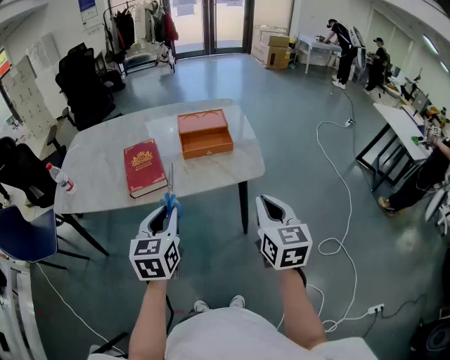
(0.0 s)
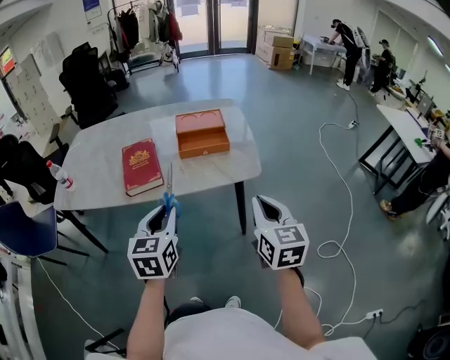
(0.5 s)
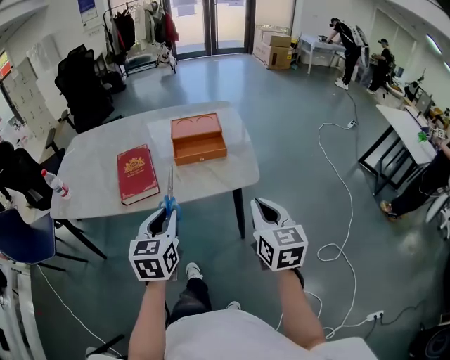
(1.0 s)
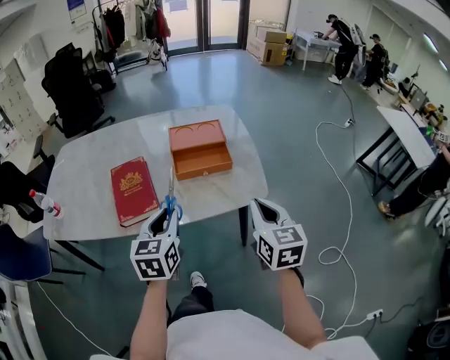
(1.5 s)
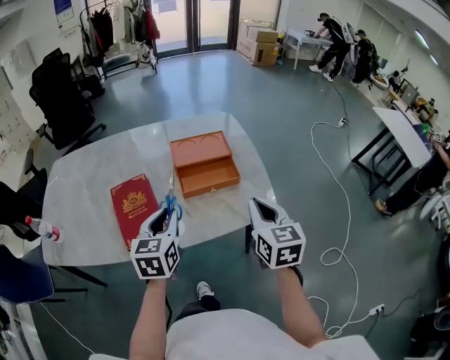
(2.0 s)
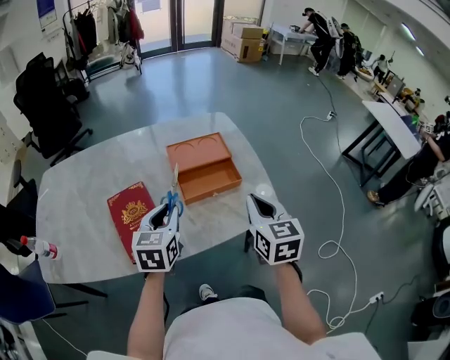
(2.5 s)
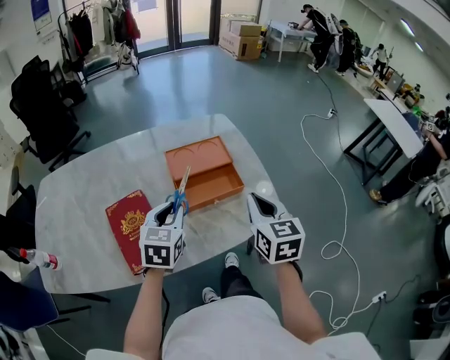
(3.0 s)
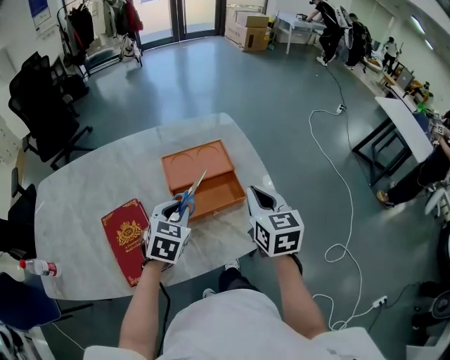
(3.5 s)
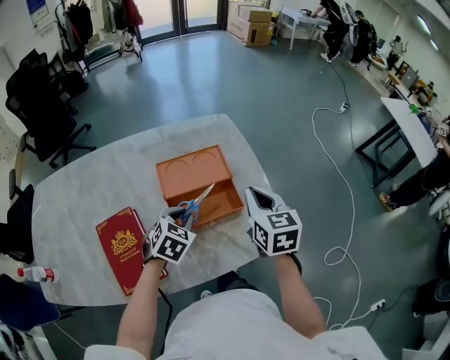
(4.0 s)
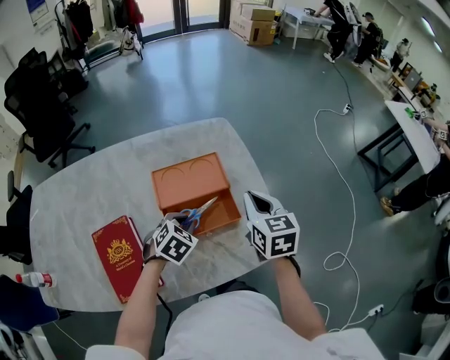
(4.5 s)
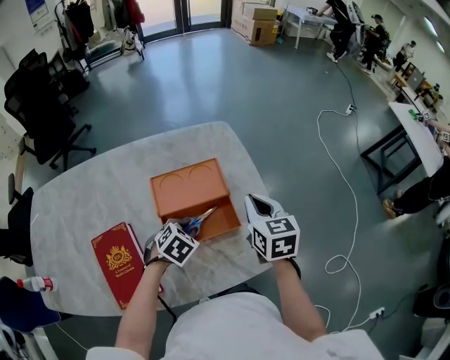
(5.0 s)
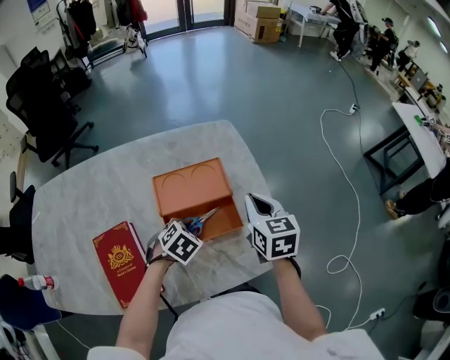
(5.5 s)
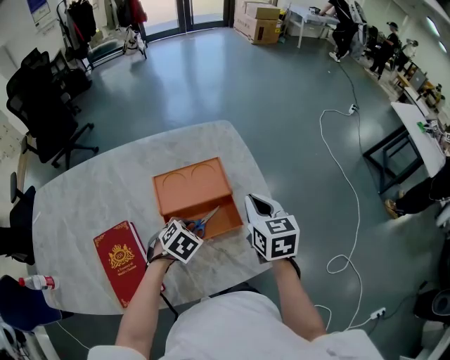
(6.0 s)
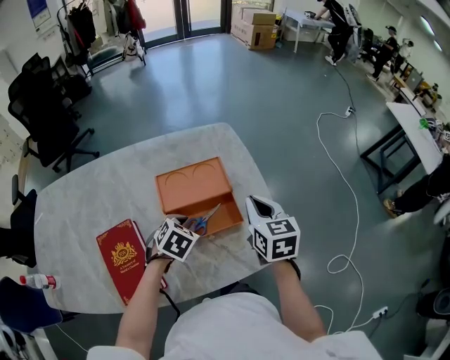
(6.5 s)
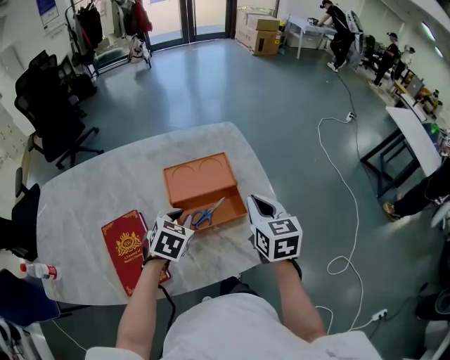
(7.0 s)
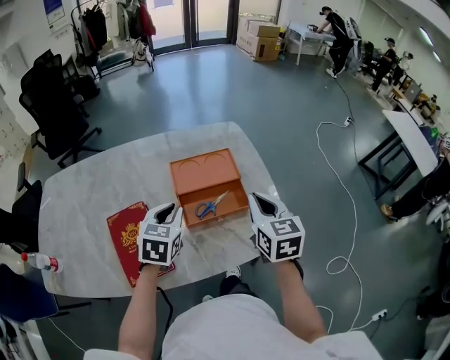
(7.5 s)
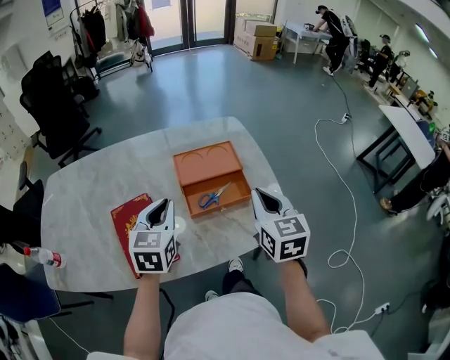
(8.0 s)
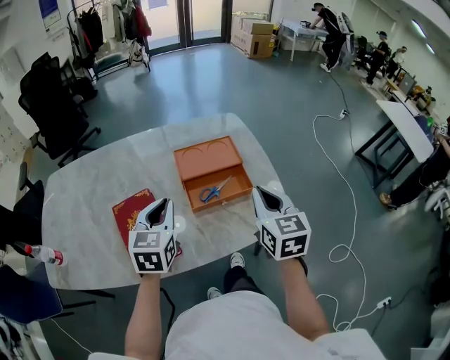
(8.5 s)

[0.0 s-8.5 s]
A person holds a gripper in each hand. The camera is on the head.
0.0 to 2.0 s: Both grippers move forward, approximately 20 cm.
2.0 to 4.0 s: The right gripper goes roughly 20 cm forward. The left gripper moves forward and downward, approximately 20 cm, and rotates approximately 40 degrees.
6.5 to 8.5 s: The right gripper moves backward and upward, roughly 15 cm, while the left gripper moves upward, backward and to the left, some 20 cm, and angles its fingers upward, by some 40 degrees.

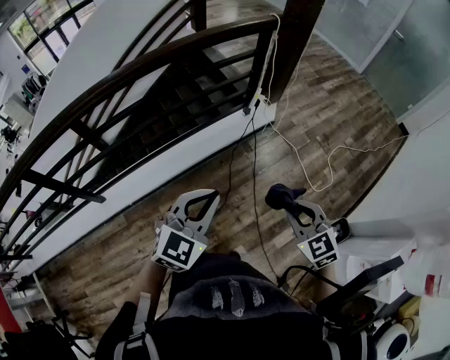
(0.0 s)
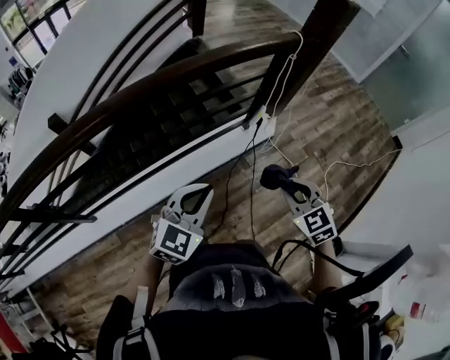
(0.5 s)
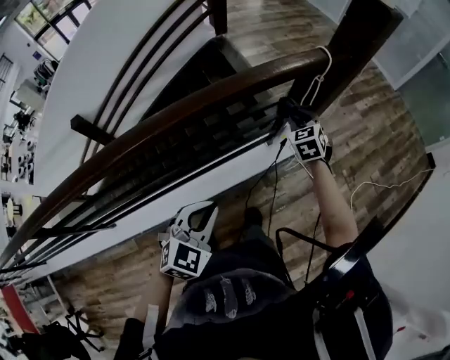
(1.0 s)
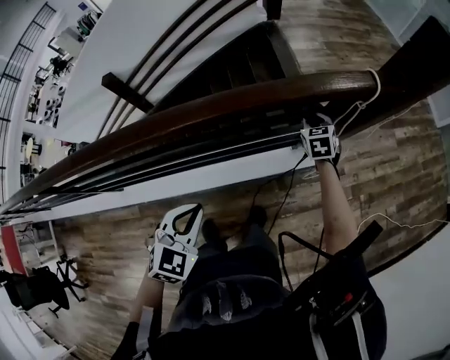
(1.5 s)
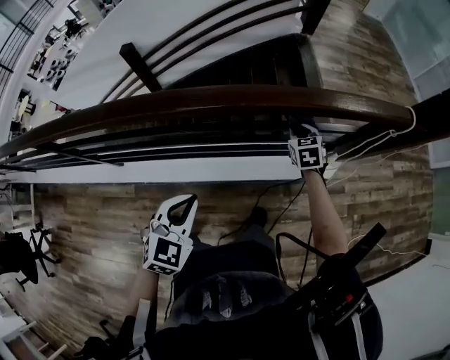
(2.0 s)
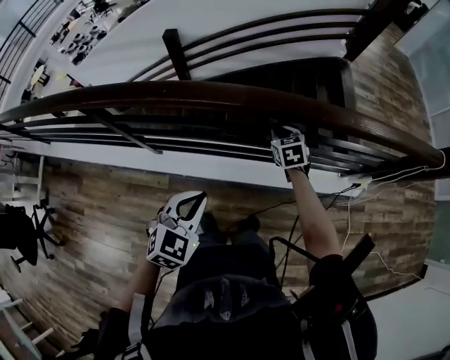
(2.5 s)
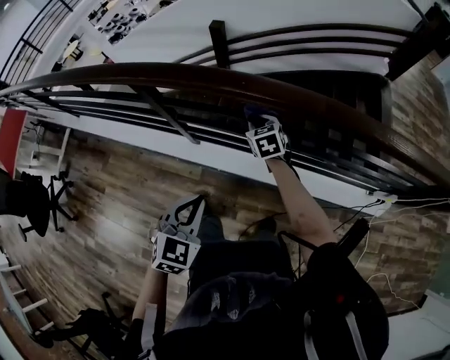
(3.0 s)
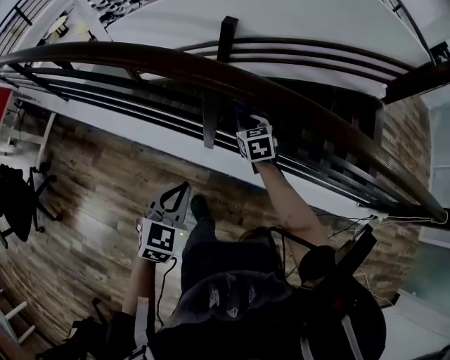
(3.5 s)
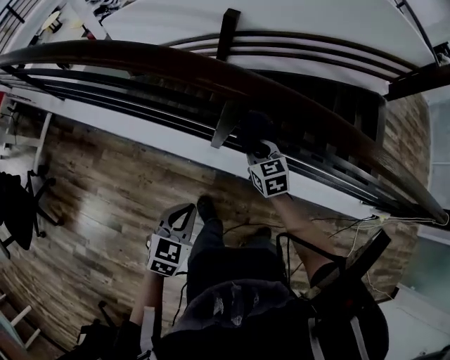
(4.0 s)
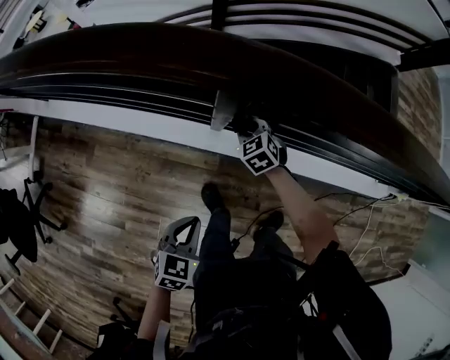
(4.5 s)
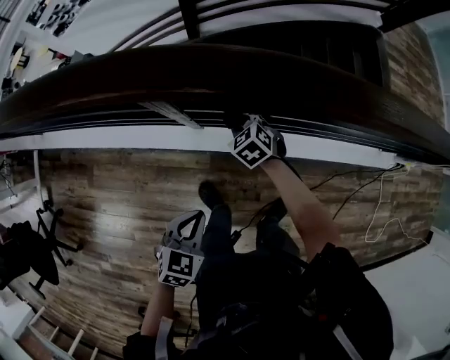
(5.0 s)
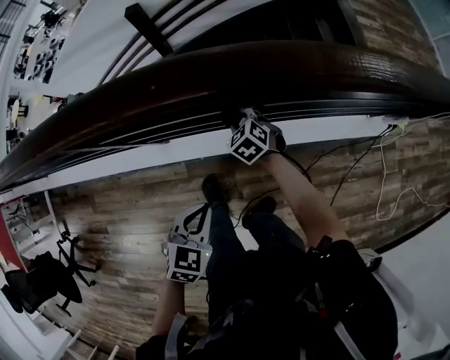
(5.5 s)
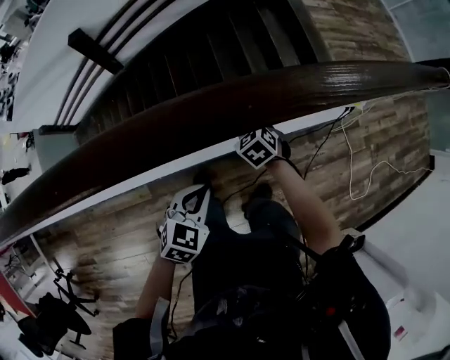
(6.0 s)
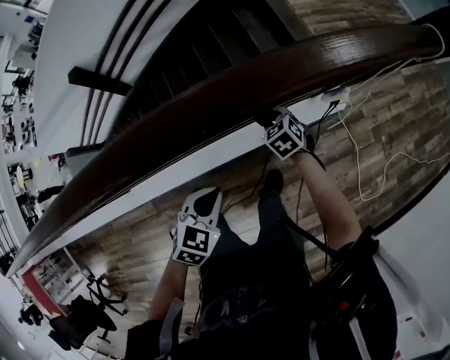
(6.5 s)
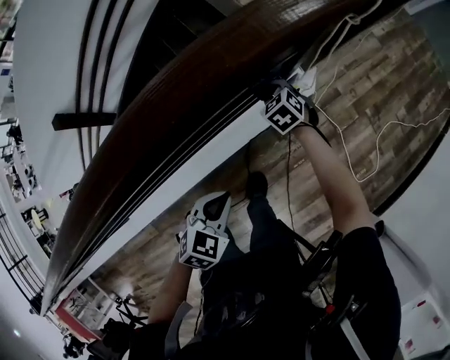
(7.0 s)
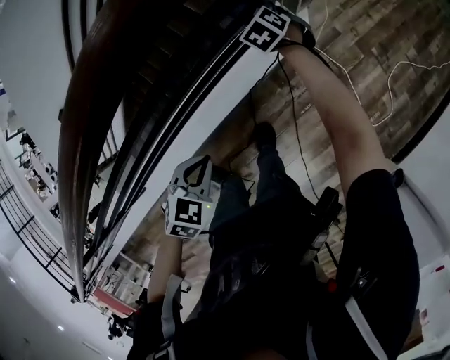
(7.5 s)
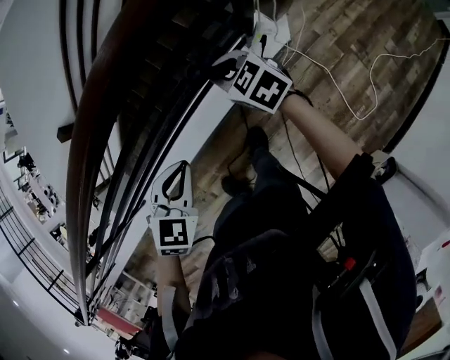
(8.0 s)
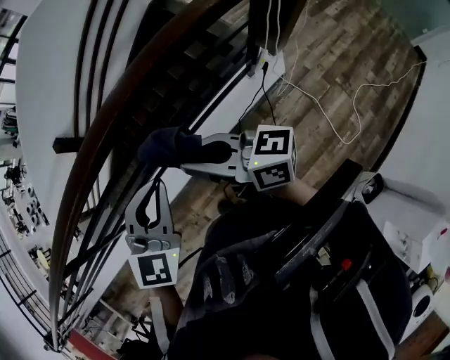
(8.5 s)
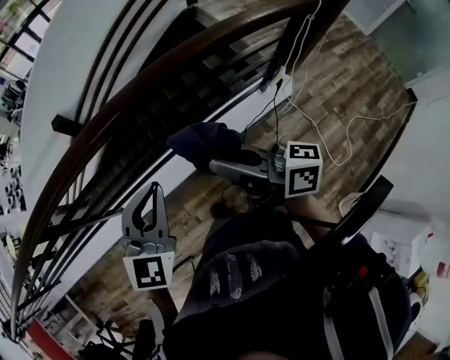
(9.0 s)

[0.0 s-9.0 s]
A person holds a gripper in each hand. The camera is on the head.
0.0 to 2.0 s: The left gripper shifts by about 35 cm, and swivels approximately 40 degrees. The right gripper moves roughly 70 cm.
2.0 to 4.5 s: Both grippers are carried about 90 cm. The right gripper swivels roughly 40 degrees, while the left gripper turns by roughly 30 degrees.
4.5 to 7.0 s: The two grippers travel together, some 1 m. The right gripper swivels approximately 50 degrees; the left gripper swivels about 60 degrees.
7.0 to 9.0 s: The right gripper moves roughly 70 cm, and angles its fingers upward, by about 70 degrees; the left gripper shifts by approximately 50 cm, and tips its fingers upward by roughly 40 degrees.

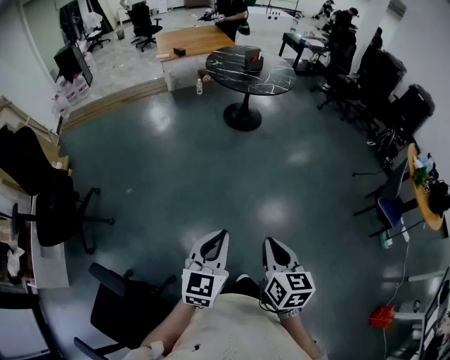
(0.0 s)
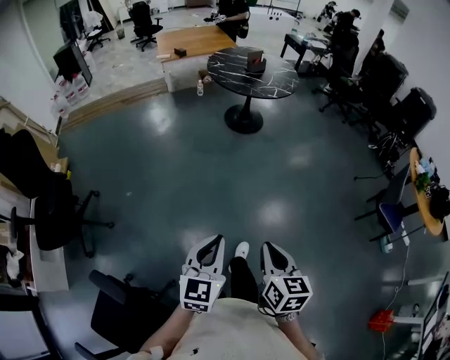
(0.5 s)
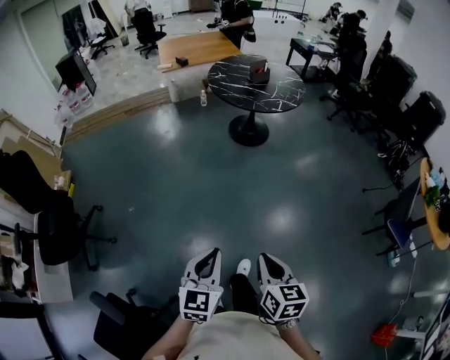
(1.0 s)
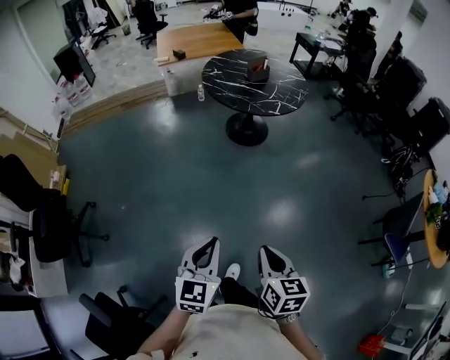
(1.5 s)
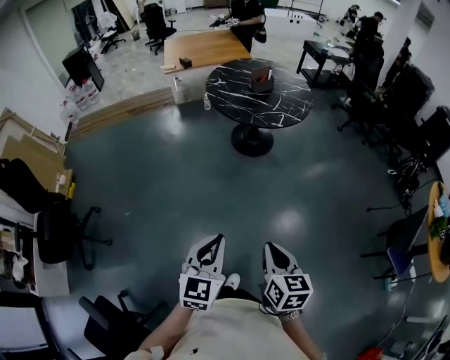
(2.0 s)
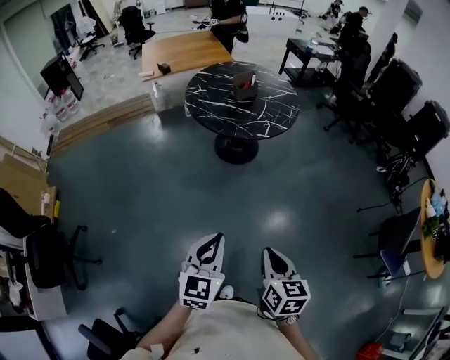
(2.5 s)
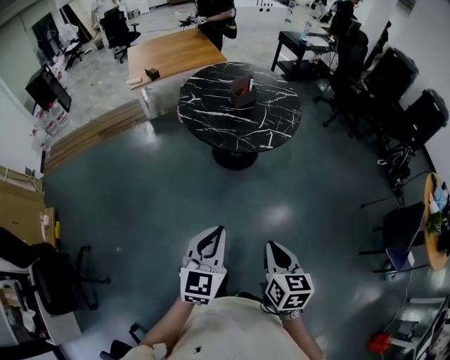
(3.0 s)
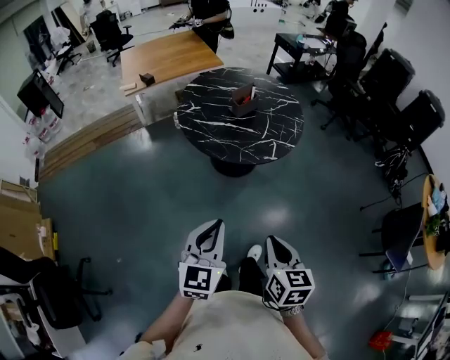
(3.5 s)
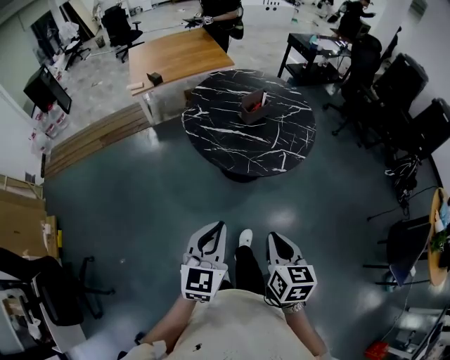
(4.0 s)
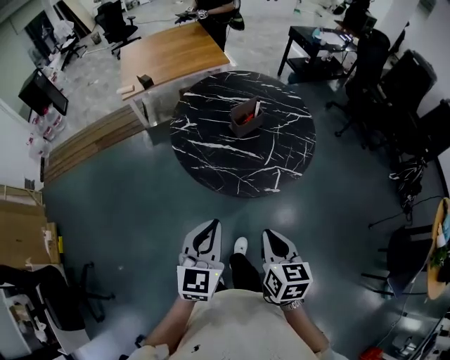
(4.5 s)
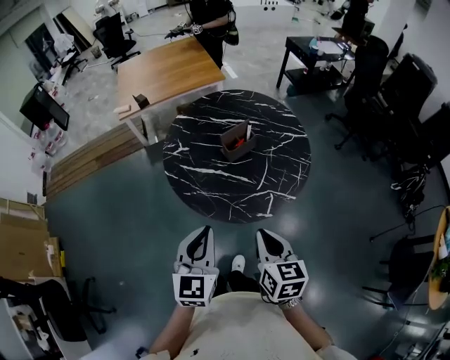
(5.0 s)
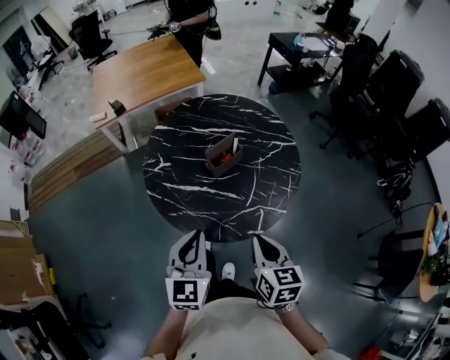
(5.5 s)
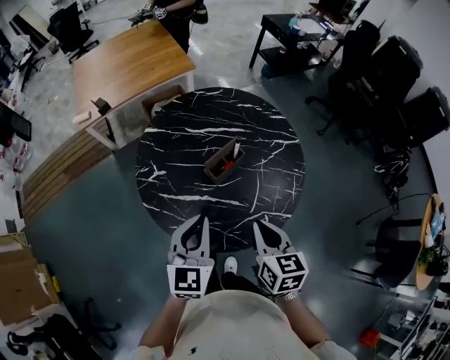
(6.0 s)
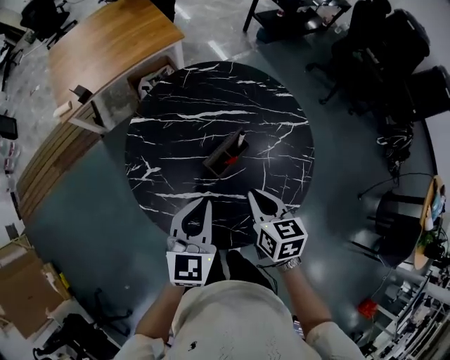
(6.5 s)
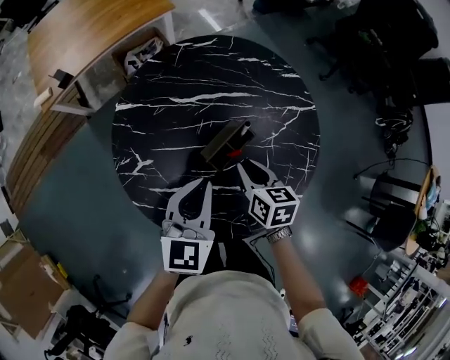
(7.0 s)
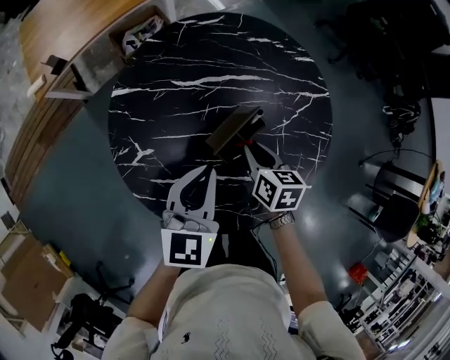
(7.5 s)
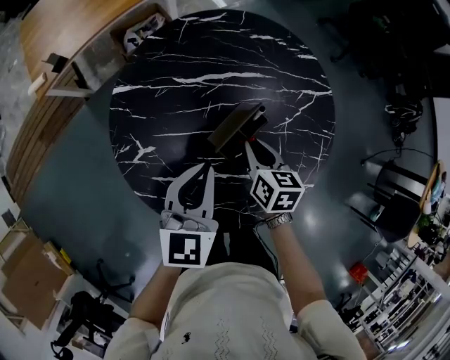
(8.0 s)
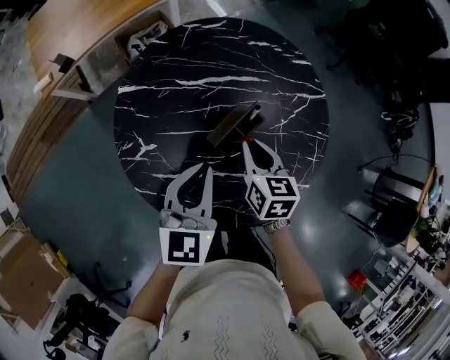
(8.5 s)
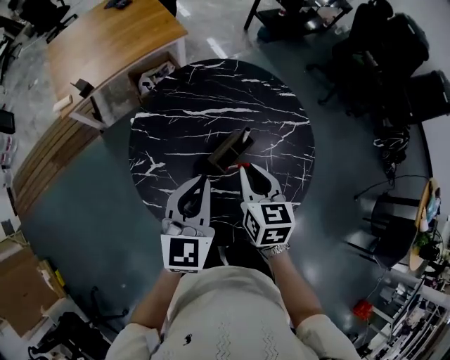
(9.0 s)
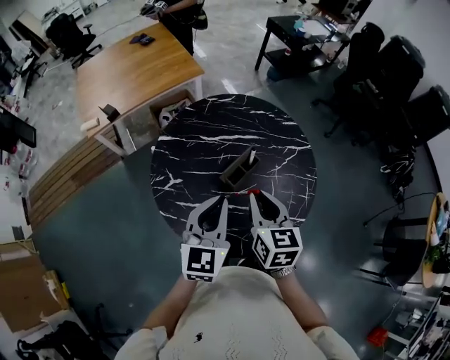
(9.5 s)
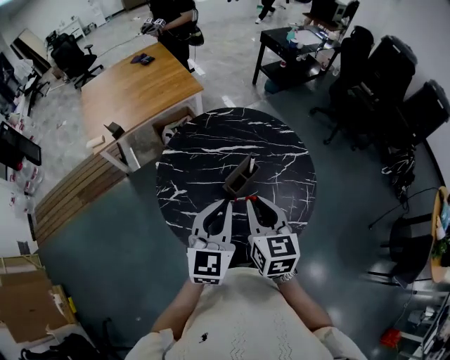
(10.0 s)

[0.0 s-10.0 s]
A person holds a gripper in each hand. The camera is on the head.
0.0 to 2.0 s: Both grippers move forward, about 35 cm.
2.0 to 4.0 s: The pair of grippers is taken forward, approximately 40 cm.
4.0 to 6.0 s: Both grippers are carried forward, some 50 cm.
6.0 to 8.0 s: The grippers both shift forward and downward by roughly 25 cm.
8.0 to 10.0 s: Both grippers move upward and backward, approximately 25 cm. The right gripper swivels approximately 30 degrees.
